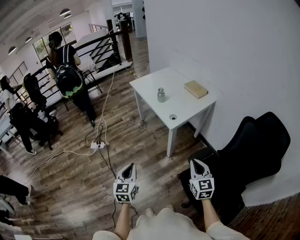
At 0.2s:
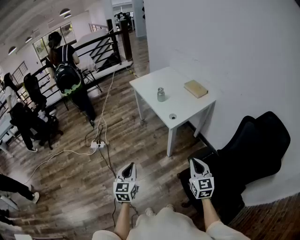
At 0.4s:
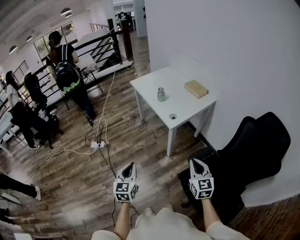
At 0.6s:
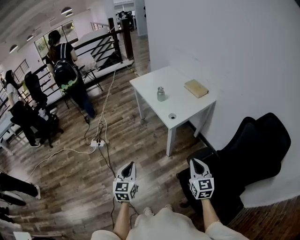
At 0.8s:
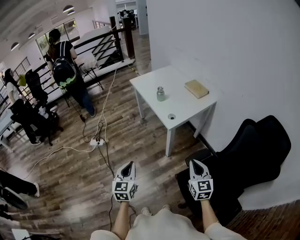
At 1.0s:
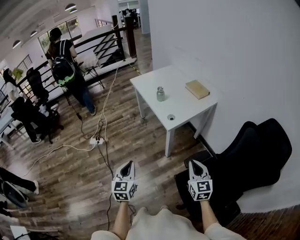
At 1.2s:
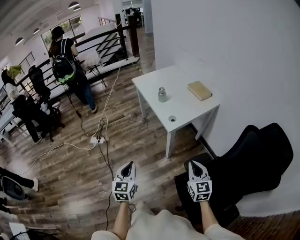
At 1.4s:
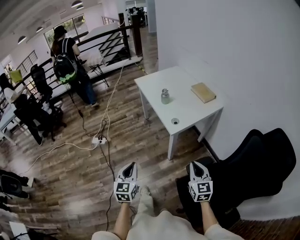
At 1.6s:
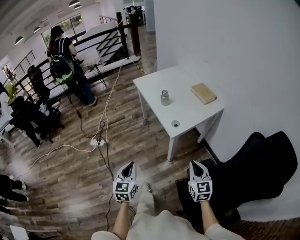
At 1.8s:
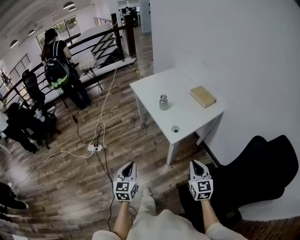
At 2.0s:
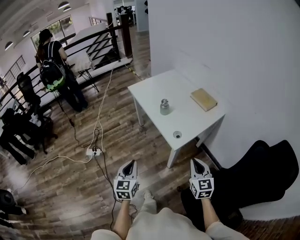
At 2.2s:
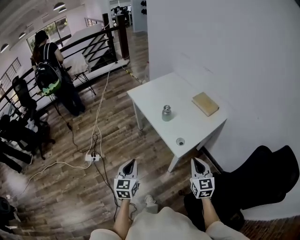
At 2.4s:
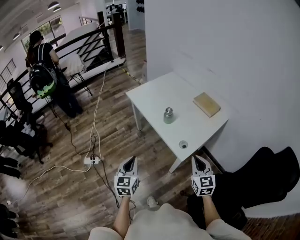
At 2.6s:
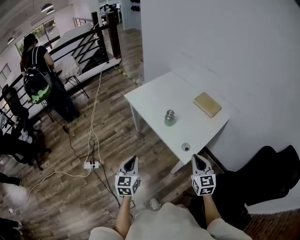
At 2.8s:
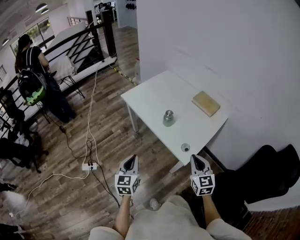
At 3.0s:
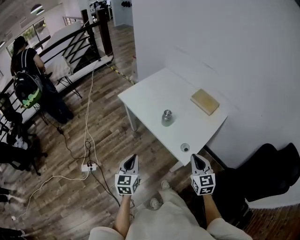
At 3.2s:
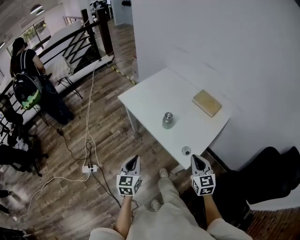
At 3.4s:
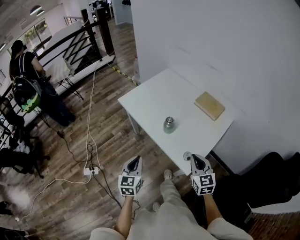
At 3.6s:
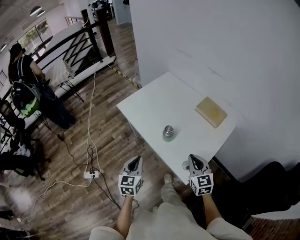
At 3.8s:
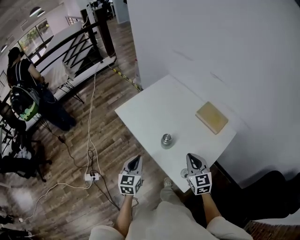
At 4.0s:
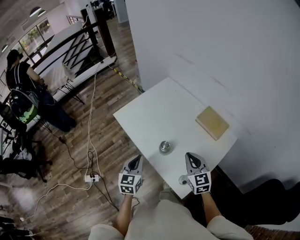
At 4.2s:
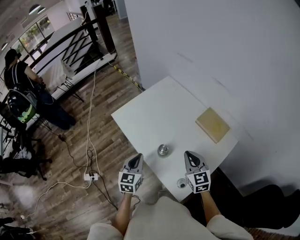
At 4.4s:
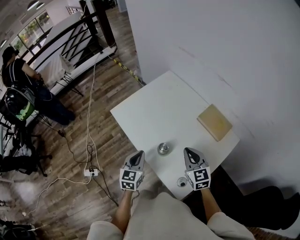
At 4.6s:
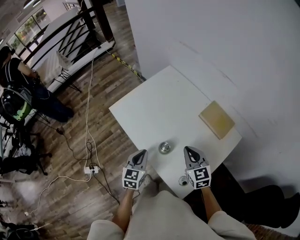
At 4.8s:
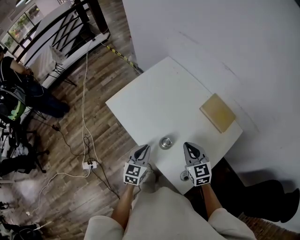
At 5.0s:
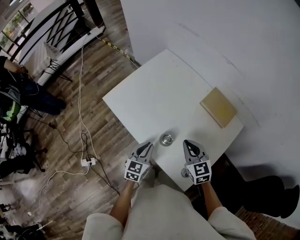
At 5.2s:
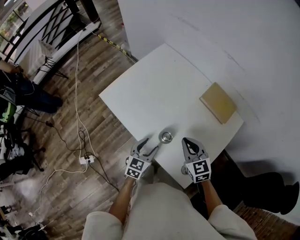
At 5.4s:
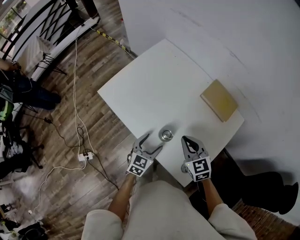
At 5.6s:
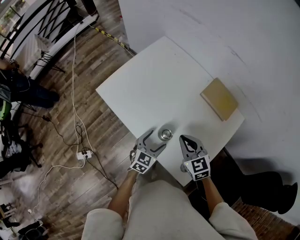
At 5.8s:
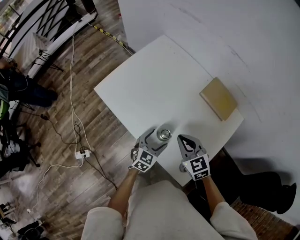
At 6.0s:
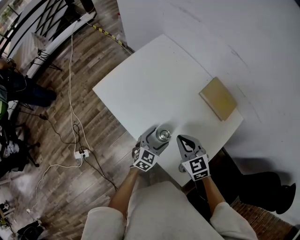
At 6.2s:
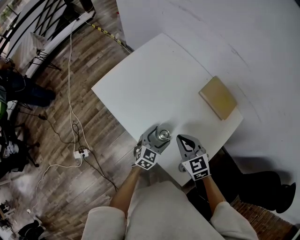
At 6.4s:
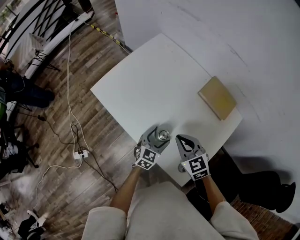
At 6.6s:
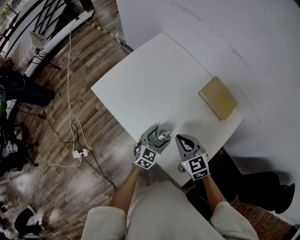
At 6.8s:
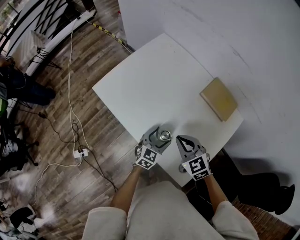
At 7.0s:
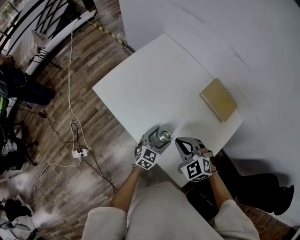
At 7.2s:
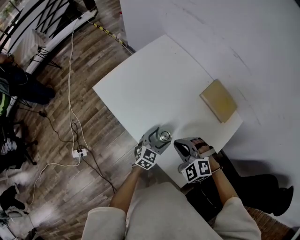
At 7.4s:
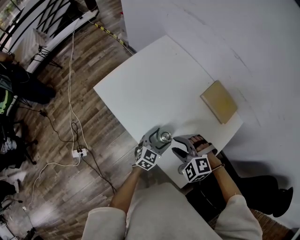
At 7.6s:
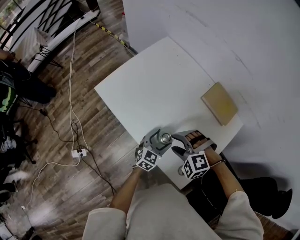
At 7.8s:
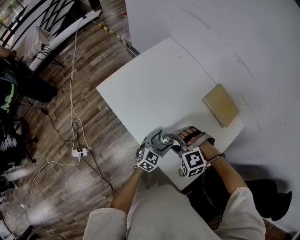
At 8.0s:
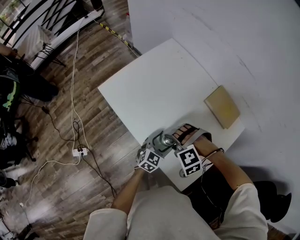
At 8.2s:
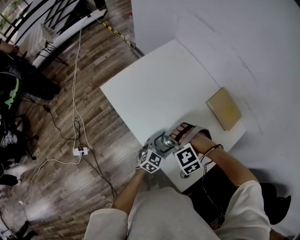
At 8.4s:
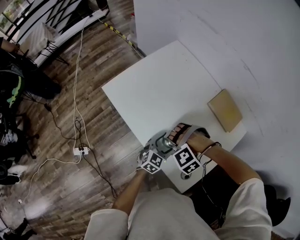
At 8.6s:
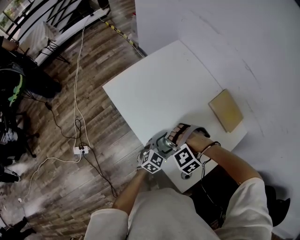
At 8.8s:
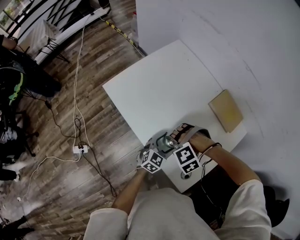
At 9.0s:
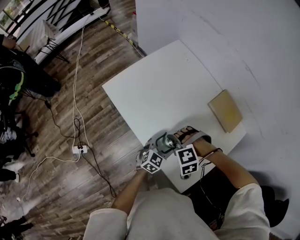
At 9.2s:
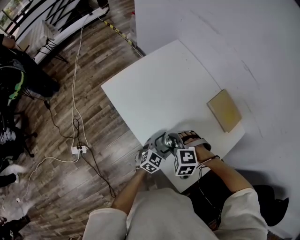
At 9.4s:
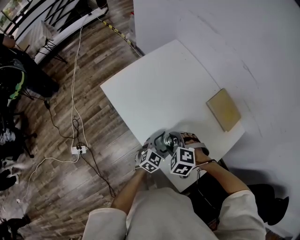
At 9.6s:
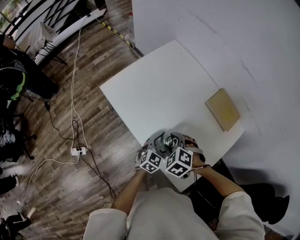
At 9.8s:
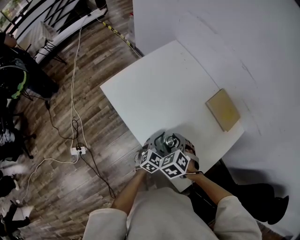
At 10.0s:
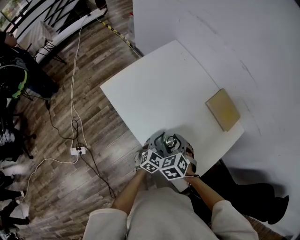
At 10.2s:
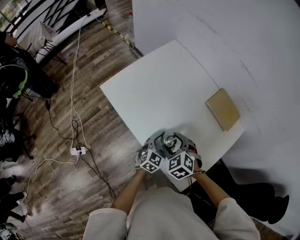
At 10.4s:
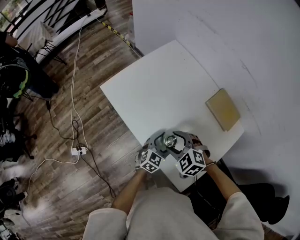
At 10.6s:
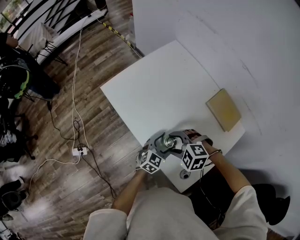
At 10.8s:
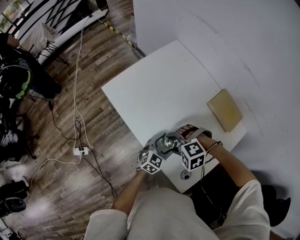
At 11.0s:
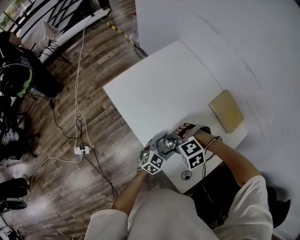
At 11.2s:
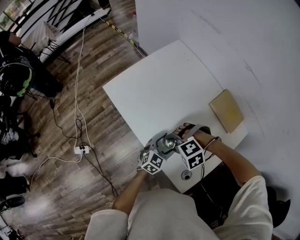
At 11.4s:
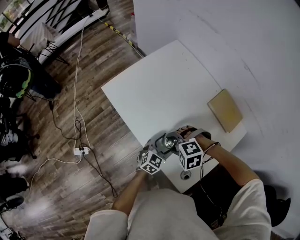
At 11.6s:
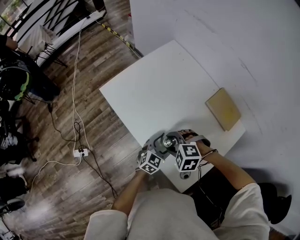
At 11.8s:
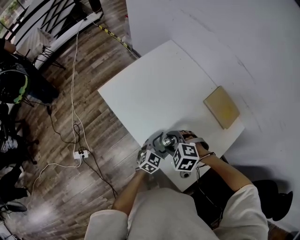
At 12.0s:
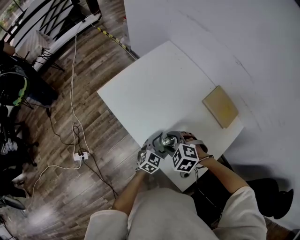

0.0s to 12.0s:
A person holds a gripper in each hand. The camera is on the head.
0.0s to 1.6s: Both grippers move forward, approximately 10 cm.
1.6s to 3.0s: The left gripper heads forward, covering some 35 cm, while the right gripper is displaced forward and to the left by some 30 cm.
3.0s to 4.4s: The two grippers go about 30 cm forward.
4.4s to 6.0s: The left gripper is displaced downward and to the right by roughly 20 cm, swivels about 30 degrees, and opens up. Meanwhile the right gripper goes about 10 cm downward and to the left.
6.0s to 7.6s: The right gripper twists some 60 degrees counterclockwise, seen from behind, and opens up.
7.6s to 9.0s: The right gripper swivels about 20 degrees.
9.0s to 10.4s: The right gripper swivels about 40 degrees.

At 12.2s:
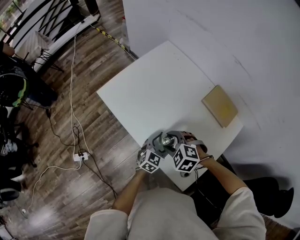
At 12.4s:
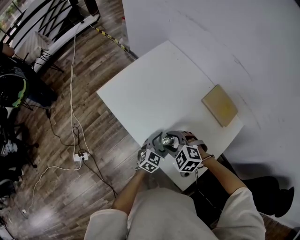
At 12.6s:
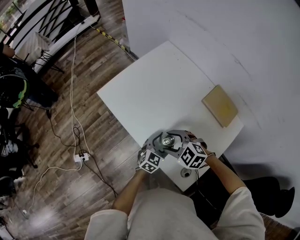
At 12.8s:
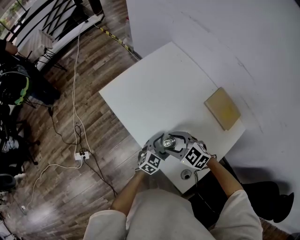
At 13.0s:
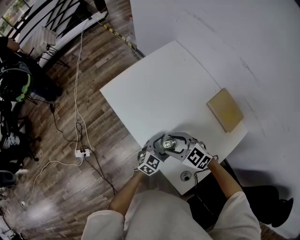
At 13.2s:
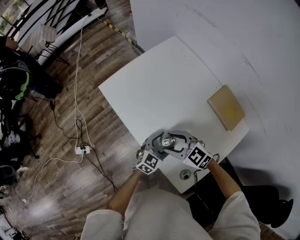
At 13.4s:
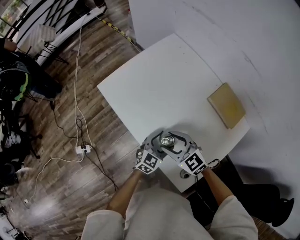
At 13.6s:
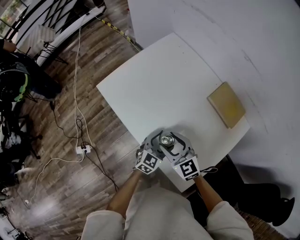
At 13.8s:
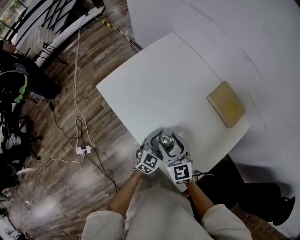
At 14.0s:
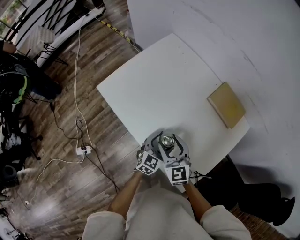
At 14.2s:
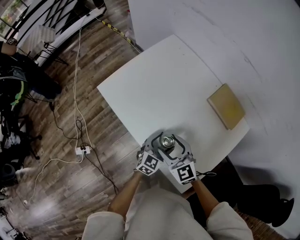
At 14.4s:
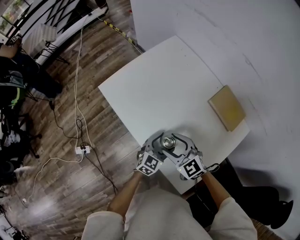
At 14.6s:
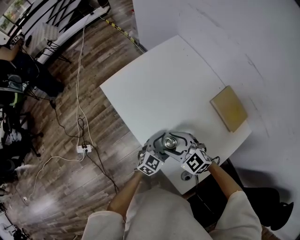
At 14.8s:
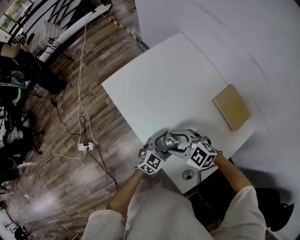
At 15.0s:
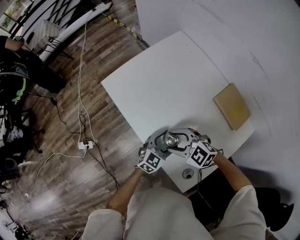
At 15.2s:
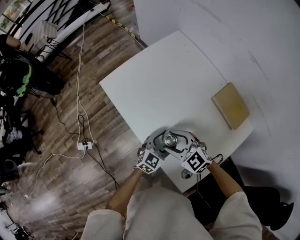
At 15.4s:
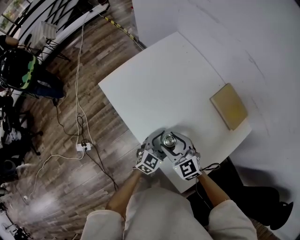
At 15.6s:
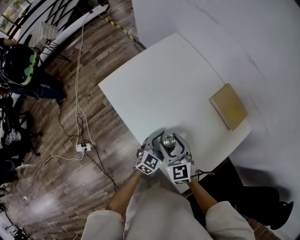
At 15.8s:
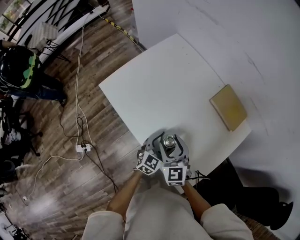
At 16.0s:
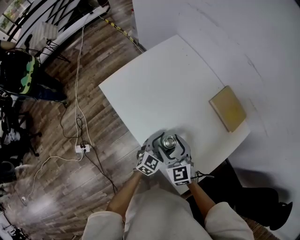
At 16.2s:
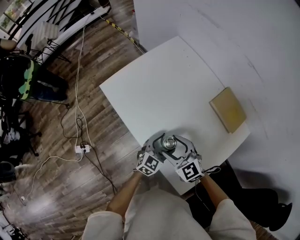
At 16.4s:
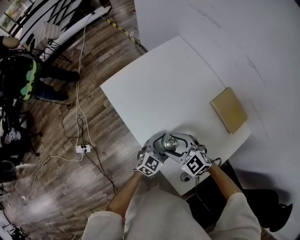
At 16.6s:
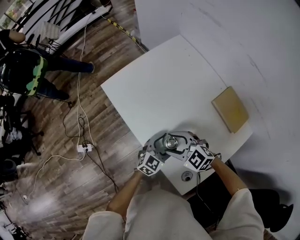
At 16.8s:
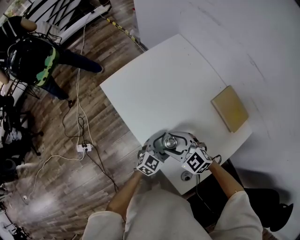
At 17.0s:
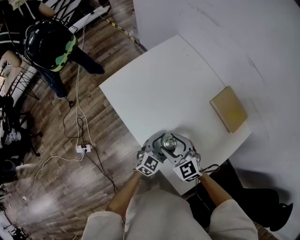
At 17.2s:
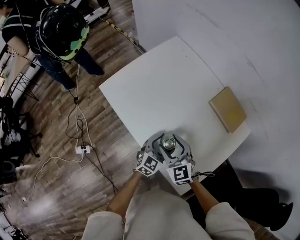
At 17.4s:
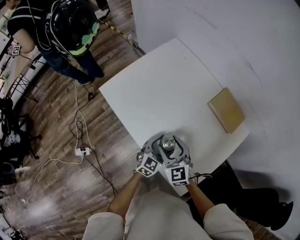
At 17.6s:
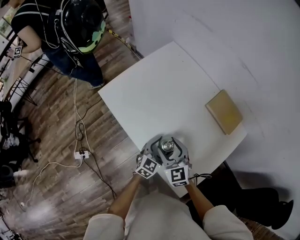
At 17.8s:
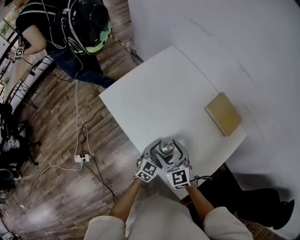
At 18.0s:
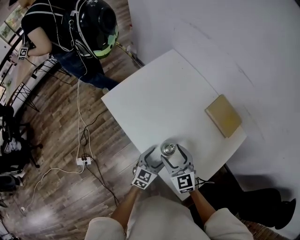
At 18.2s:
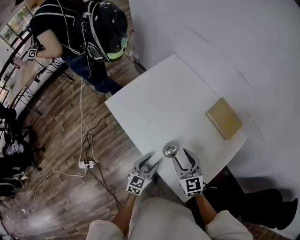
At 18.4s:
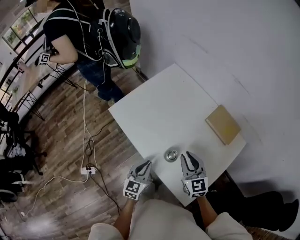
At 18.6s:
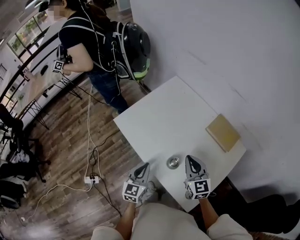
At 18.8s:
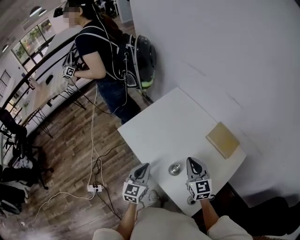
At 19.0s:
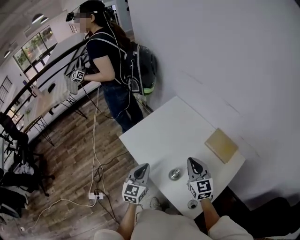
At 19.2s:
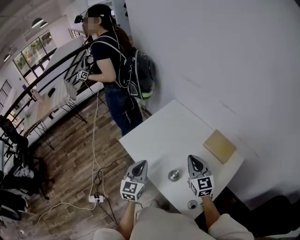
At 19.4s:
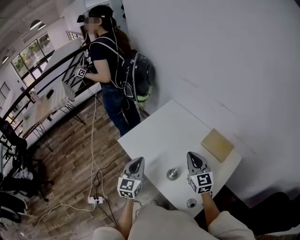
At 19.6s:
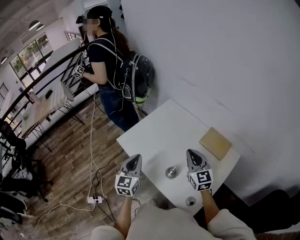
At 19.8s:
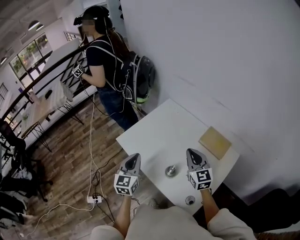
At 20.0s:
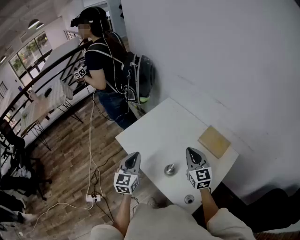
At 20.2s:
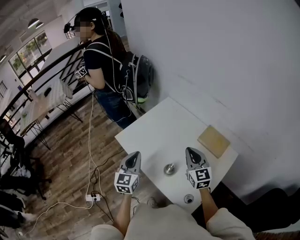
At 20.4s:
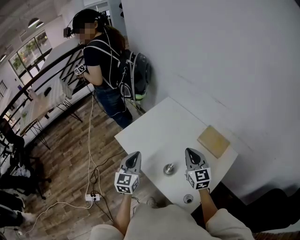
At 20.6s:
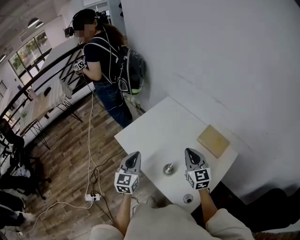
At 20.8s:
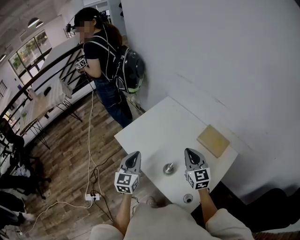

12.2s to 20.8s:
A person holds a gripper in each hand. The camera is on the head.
12.2s to 13.6s: The right gripper points its fingers some 40 degrees further upward.
13.6s to 15.0s: The right gripper rotates approximately 40 degrees.
16.6s to 18.0s: The left gripper changes place by some 5 cm. The right gripper changes its angle by approximately 50 degrees.
18.0s to 19.4s: The right gripper travels upward and to the right by roughly 20 cm, and closes, while the left gripper goes roughly 30 cm upward and to the left, turns by roughly 30 degrees, and closes up.
19.4s to 20.8s: The grippers make only small movements.

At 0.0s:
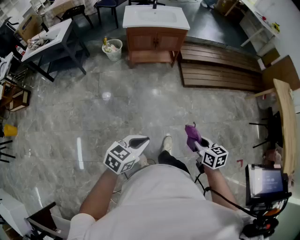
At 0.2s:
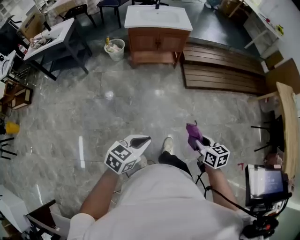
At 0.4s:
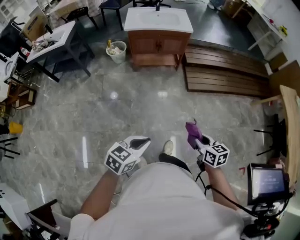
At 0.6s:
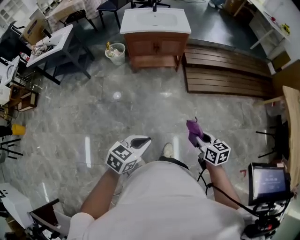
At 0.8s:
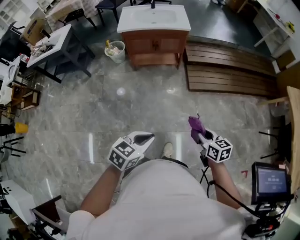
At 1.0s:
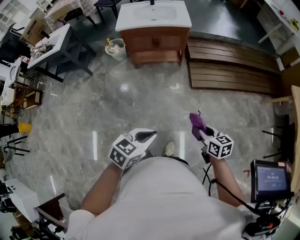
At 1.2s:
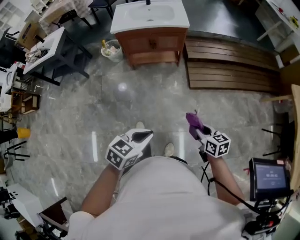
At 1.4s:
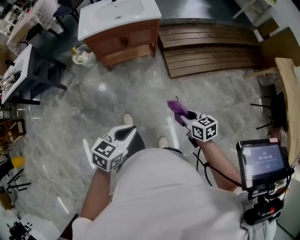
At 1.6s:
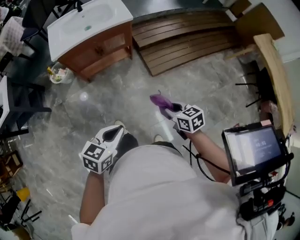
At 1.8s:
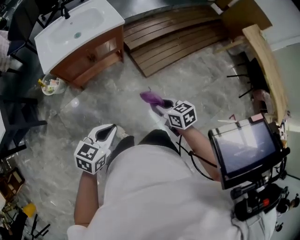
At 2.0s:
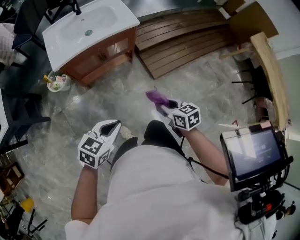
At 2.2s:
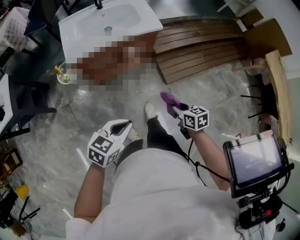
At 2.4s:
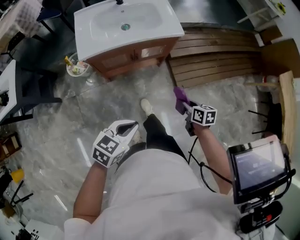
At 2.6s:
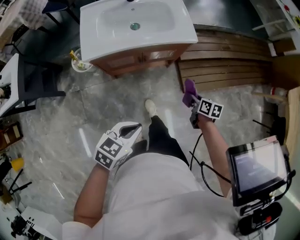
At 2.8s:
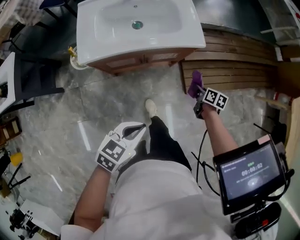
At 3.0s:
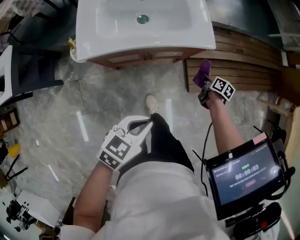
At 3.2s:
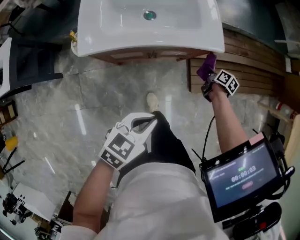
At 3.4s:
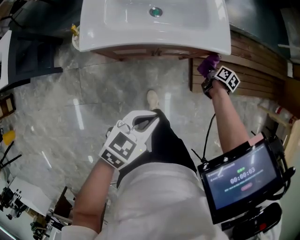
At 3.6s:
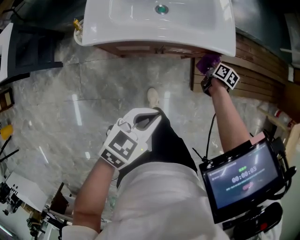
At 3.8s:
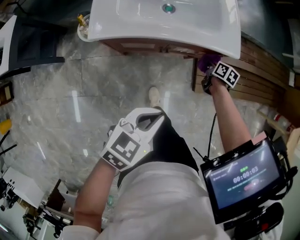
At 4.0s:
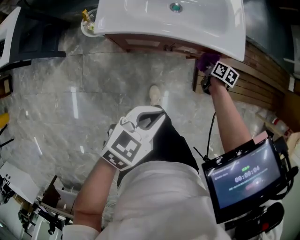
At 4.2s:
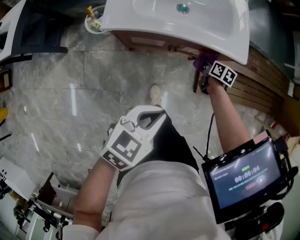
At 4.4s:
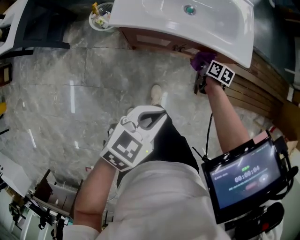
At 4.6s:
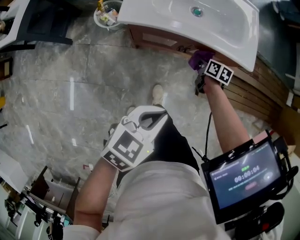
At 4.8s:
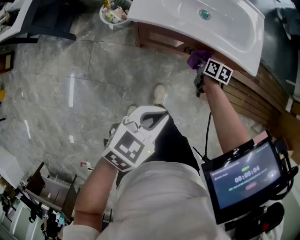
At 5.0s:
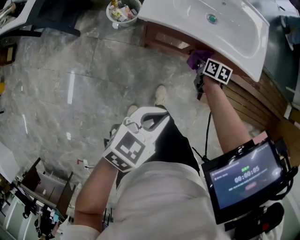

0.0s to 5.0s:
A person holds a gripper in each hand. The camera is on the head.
0.0s to 1.6s: The grippers both shift forward by approximately 40 cm.
1.6s to 3.4s: The pair of grippers is taken forward, some 50 cm. The right gripper goes about 25 cm downward, and changes its angle by approximately 40 degrees.
3.4s to 5.0s: The left gripper shifts roughly 10 cm to the left and backward, while the right gripper shifts about 30 cm to the left, and changes its angle by about 40 degrees.
